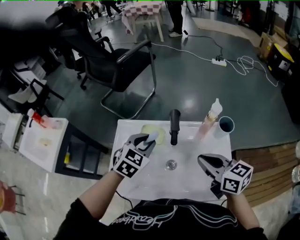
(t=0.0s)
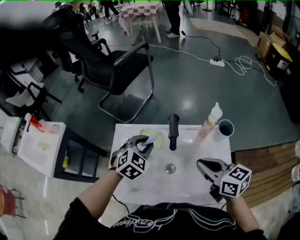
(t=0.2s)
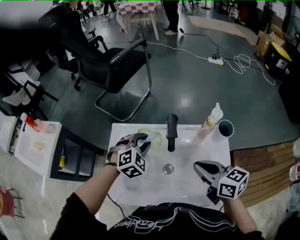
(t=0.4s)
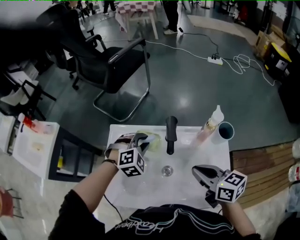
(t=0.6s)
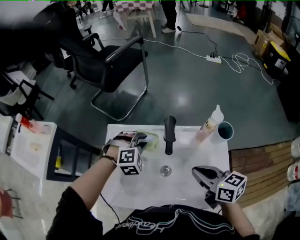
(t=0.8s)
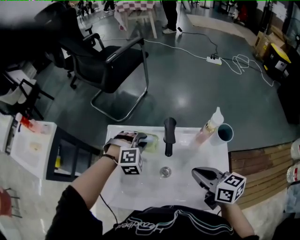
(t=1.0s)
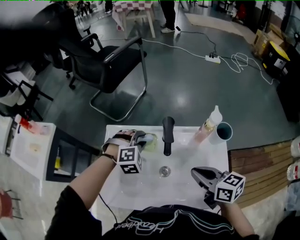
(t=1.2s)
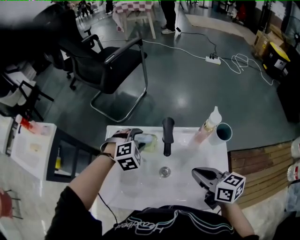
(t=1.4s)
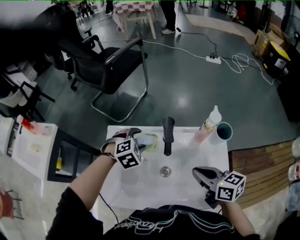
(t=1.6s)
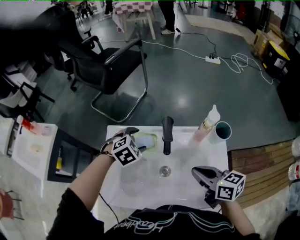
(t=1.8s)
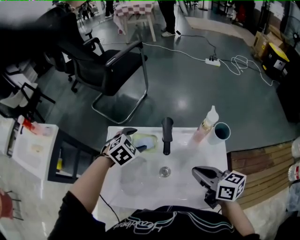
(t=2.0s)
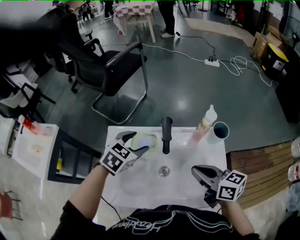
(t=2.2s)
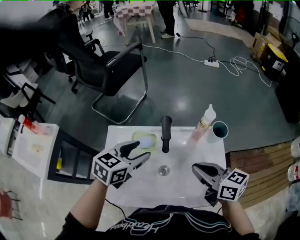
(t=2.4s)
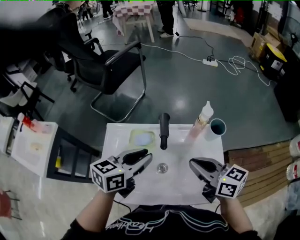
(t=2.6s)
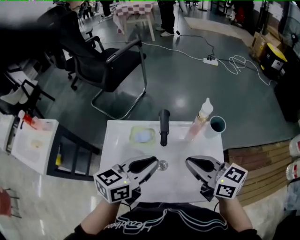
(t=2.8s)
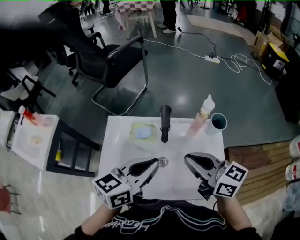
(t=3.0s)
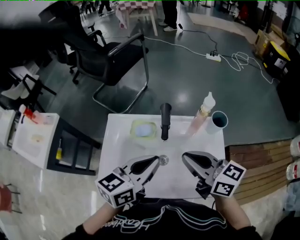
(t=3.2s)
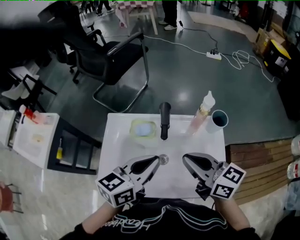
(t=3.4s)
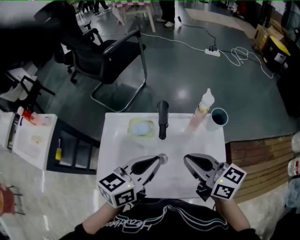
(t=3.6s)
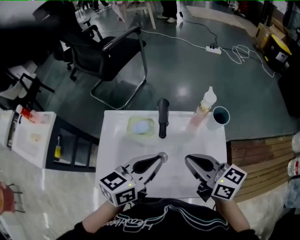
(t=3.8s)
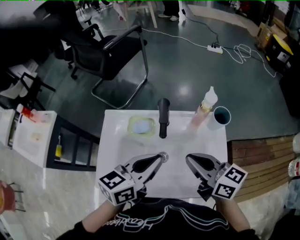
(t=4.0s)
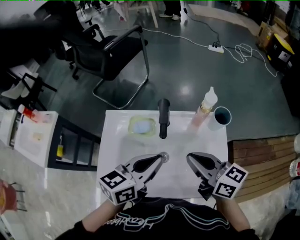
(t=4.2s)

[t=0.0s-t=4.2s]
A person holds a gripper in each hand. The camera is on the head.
t=0.0s to t=1.4s: The left gripper shifts about 10 cm downward and forward, and swivels approximately 40 degrees, while the right gripper goes some 5 cm downward.
t=1.4s to t=2.8s: The left gripper shifts some 20 cm backward and upward, tilts its fingers roughly 40 degrees upward, and closes. The right gripper moves upward, roughly 10 cm.
t=2.8s to t=4.2s: The grippers move only a little.

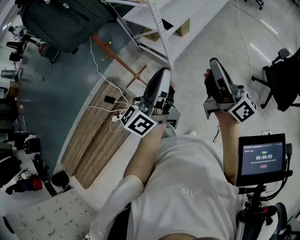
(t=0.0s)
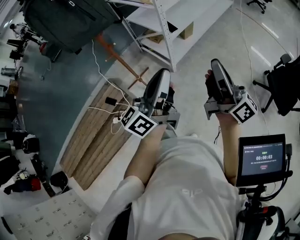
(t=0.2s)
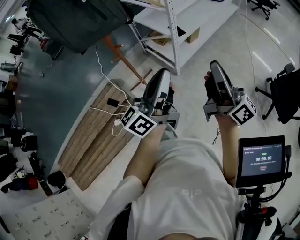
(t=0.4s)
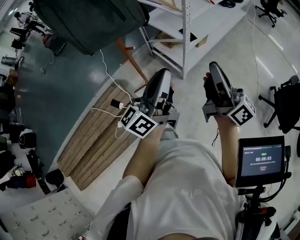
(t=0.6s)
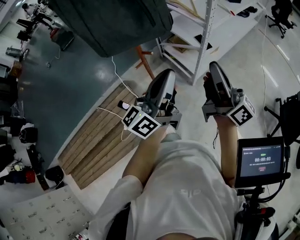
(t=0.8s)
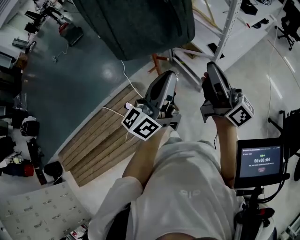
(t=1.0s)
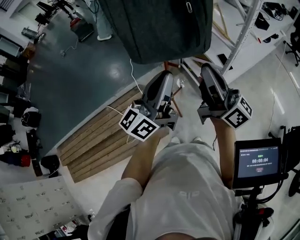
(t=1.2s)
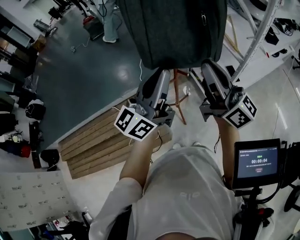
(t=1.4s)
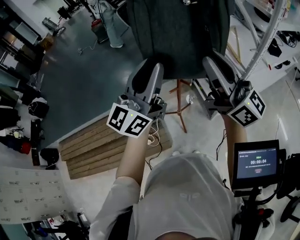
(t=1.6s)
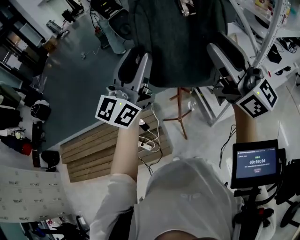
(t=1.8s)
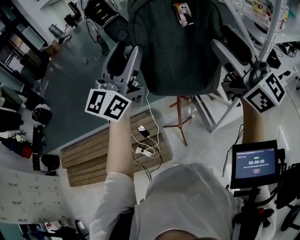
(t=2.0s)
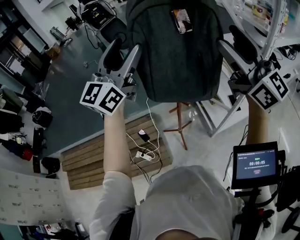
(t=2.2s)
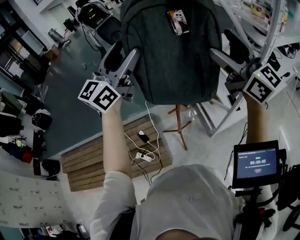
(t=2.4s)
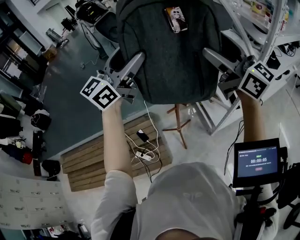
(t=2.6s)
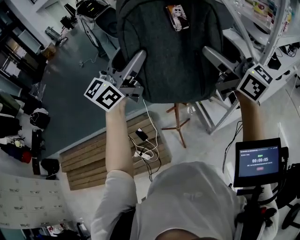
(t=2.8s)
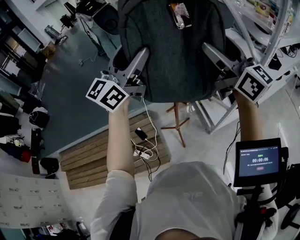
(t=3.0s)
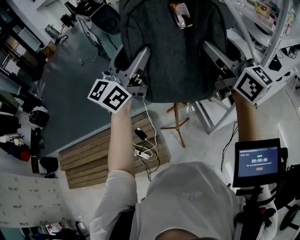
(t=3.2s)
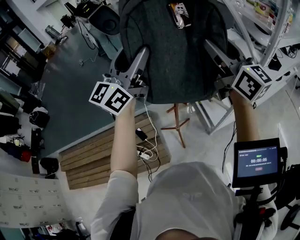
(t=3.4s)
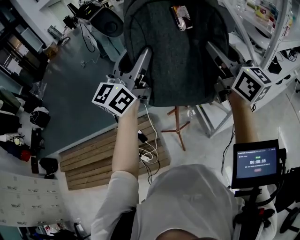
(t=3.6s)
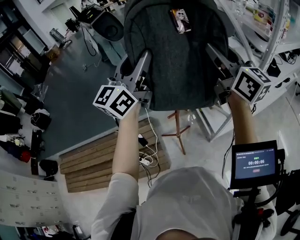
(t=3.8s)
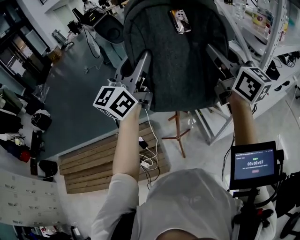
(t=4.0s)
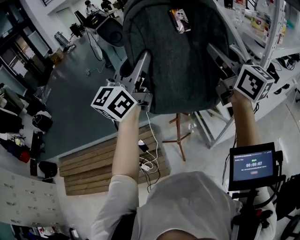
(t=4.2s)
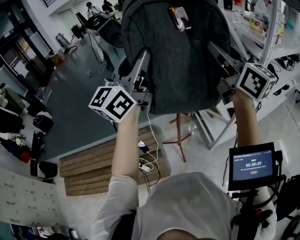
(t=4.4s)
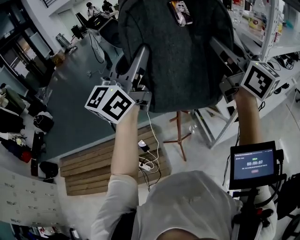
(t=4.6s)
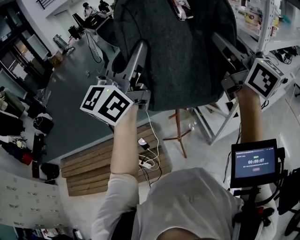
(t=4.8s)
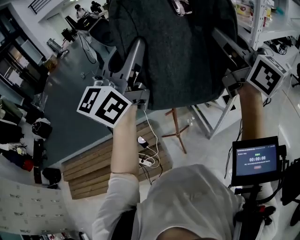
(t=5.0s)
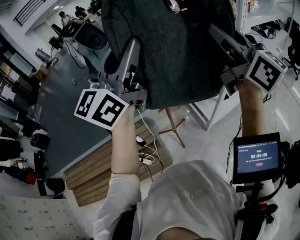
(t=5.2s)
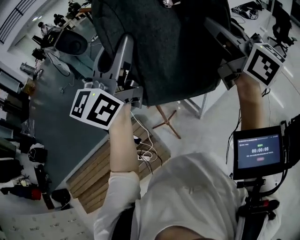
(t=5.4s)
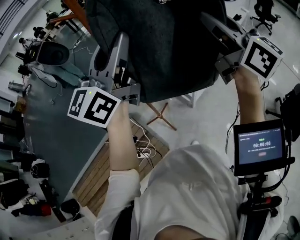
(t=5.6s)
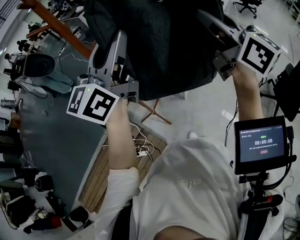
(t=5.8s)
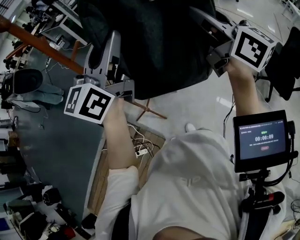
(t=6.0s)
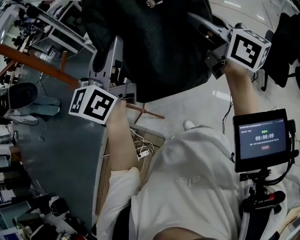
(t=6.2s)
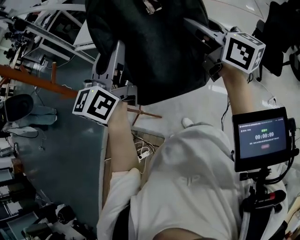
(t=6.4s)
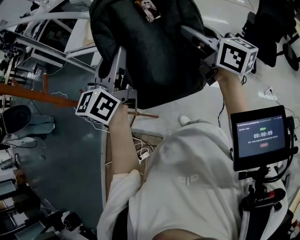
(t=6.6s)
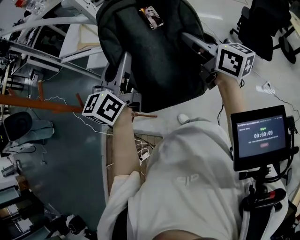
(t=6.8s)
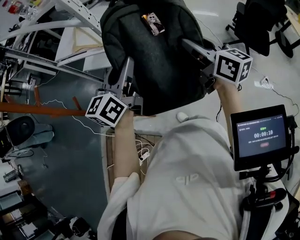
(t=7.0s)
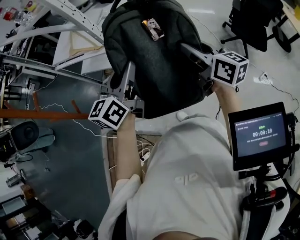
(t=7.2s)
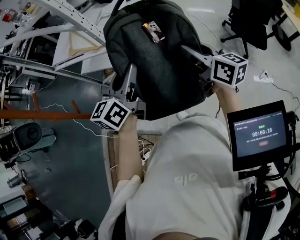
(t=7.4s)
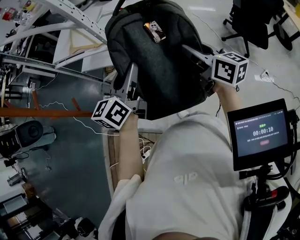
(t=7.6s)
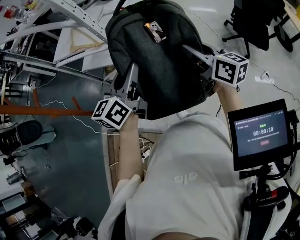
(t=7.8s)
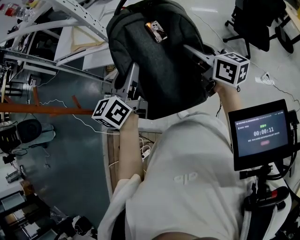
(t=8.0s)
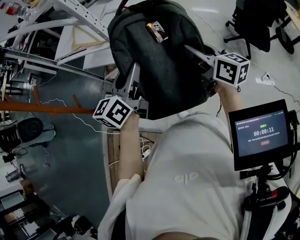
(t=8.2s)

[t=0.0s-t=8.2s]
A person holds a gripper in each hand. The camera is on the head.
t=0.0s to t=1.6s: The grippers both shift to the left, upward and forward by approximately 15 cm. The left gripper rolls clockwise, seen from behind, by some 40 degrees. The right gripper changes its angle by about 30 degrees.
t=1.6s to t=3.2s: The right gripper travels forward by about 5 cm, and opens, while the left gripper moves forward and upward, approximately 10 cm, and opens.
t=3.2s to t=5.0s: Both grippers move upward, approximately 5 cm. The right gripper closes up. Meanwhile the left gripper closes.
t=5.0s to t=6.6s: The left gripper shifts by approximately 40 cm, and changes its angle by approximately 50 degrees; the right gripper shifts by about 40 cm, and changes its angle by roughly 50 degrees.
t=6.6s to t=8.2s: The grippers both shift downward by about 10 cm.

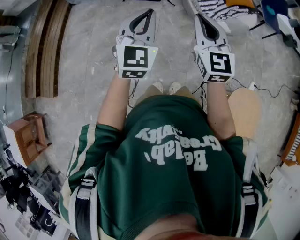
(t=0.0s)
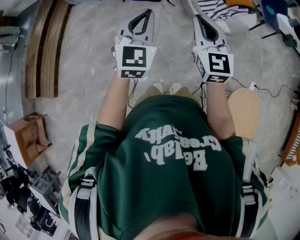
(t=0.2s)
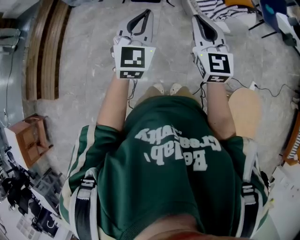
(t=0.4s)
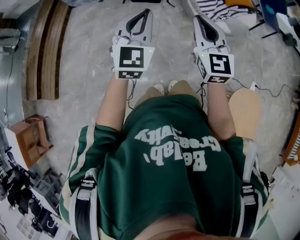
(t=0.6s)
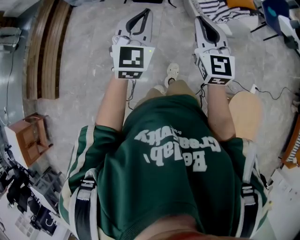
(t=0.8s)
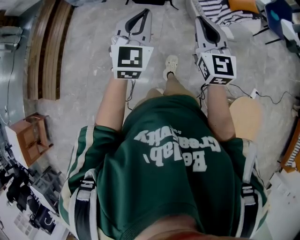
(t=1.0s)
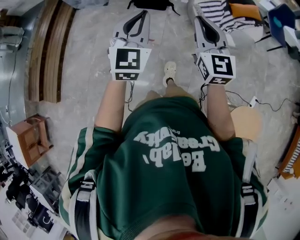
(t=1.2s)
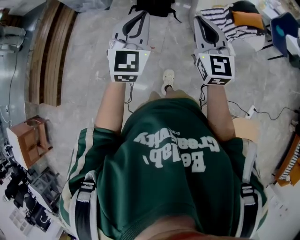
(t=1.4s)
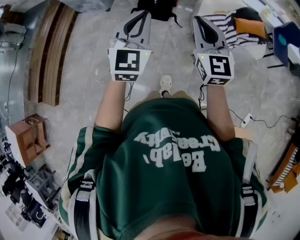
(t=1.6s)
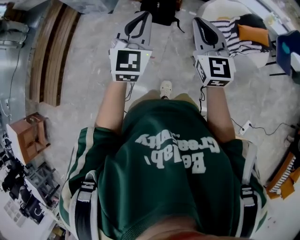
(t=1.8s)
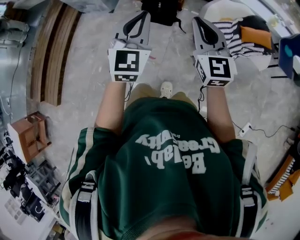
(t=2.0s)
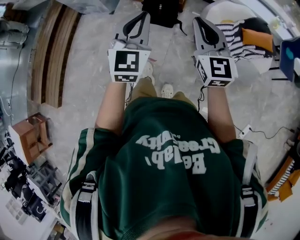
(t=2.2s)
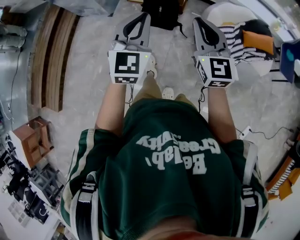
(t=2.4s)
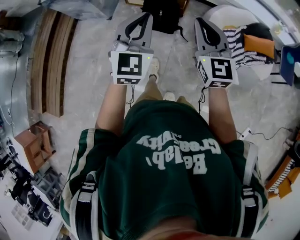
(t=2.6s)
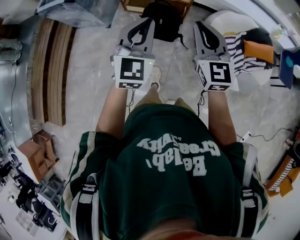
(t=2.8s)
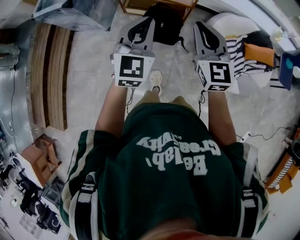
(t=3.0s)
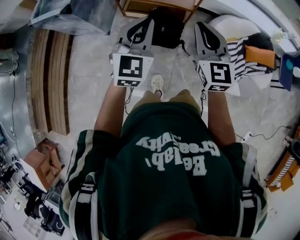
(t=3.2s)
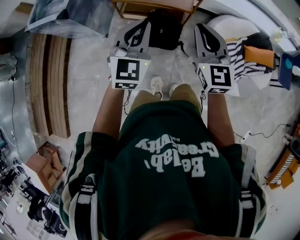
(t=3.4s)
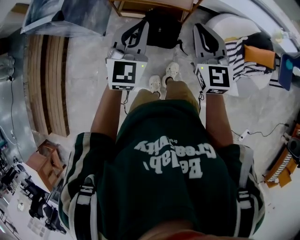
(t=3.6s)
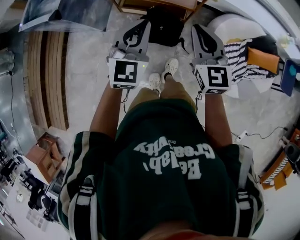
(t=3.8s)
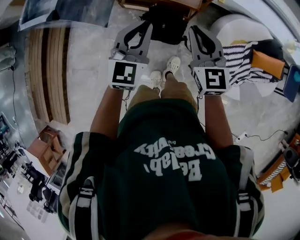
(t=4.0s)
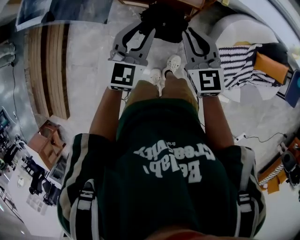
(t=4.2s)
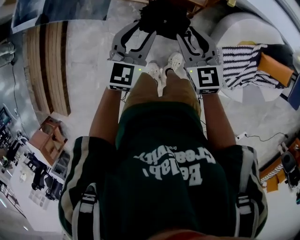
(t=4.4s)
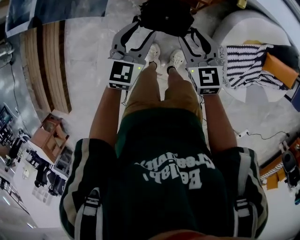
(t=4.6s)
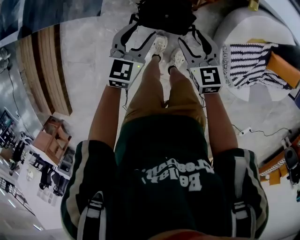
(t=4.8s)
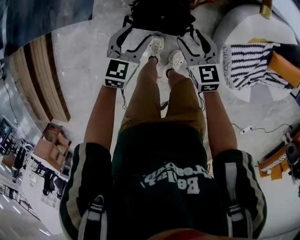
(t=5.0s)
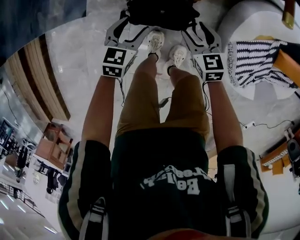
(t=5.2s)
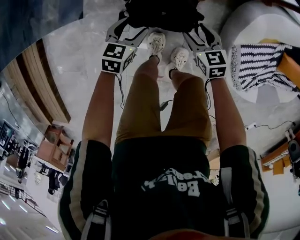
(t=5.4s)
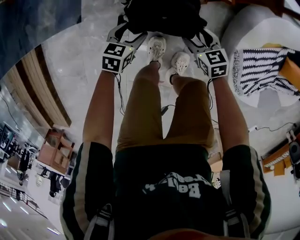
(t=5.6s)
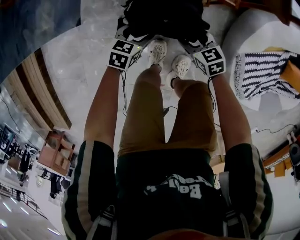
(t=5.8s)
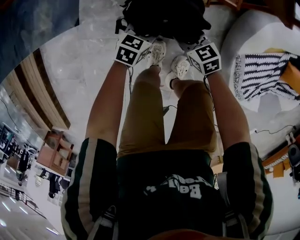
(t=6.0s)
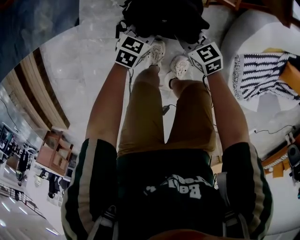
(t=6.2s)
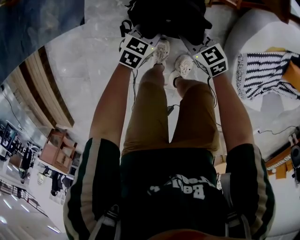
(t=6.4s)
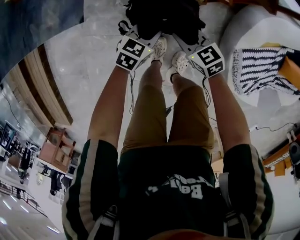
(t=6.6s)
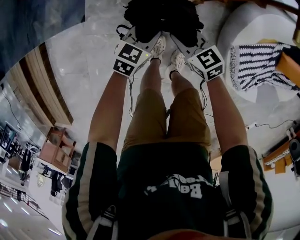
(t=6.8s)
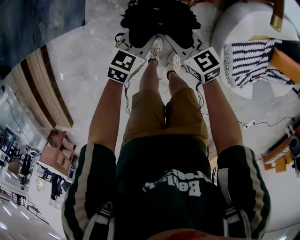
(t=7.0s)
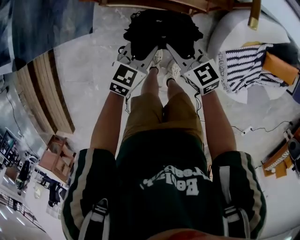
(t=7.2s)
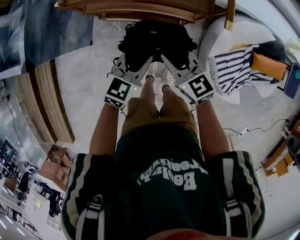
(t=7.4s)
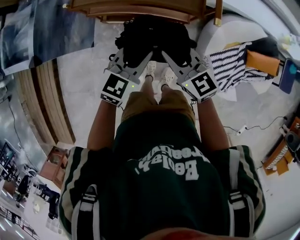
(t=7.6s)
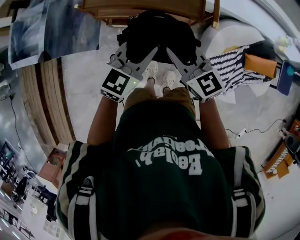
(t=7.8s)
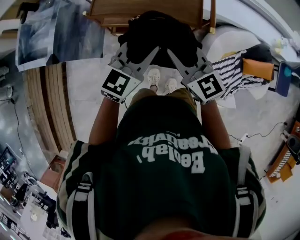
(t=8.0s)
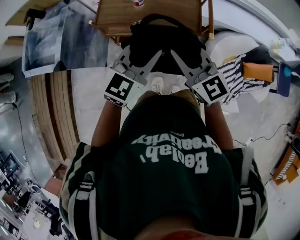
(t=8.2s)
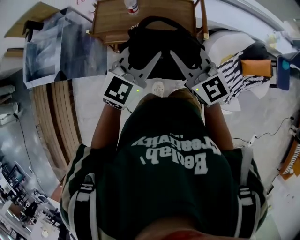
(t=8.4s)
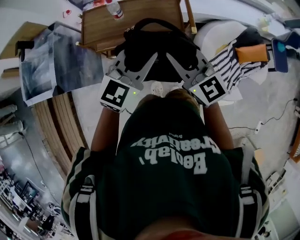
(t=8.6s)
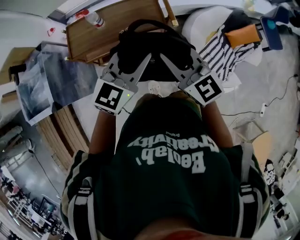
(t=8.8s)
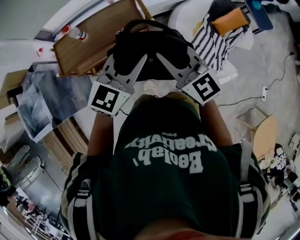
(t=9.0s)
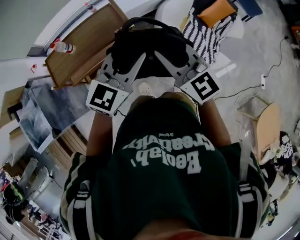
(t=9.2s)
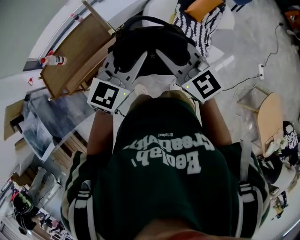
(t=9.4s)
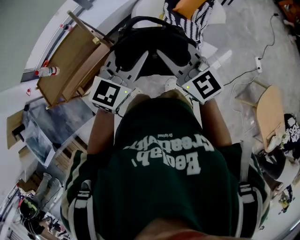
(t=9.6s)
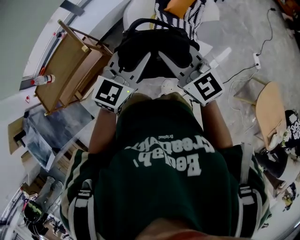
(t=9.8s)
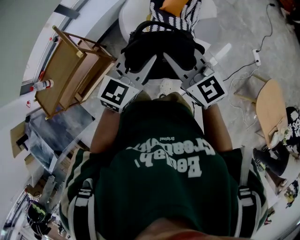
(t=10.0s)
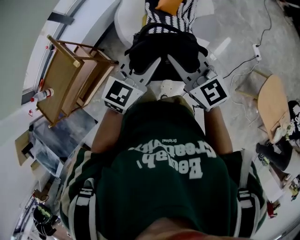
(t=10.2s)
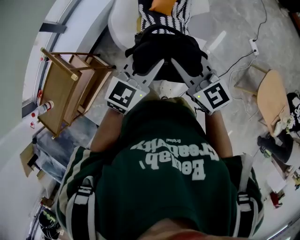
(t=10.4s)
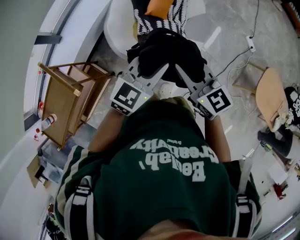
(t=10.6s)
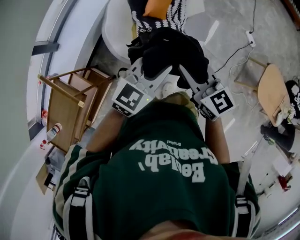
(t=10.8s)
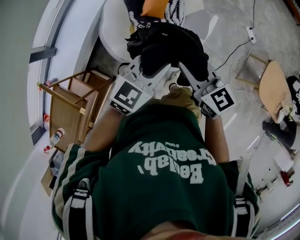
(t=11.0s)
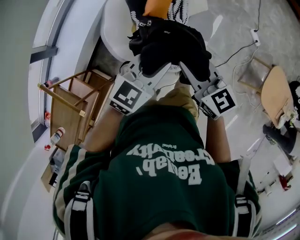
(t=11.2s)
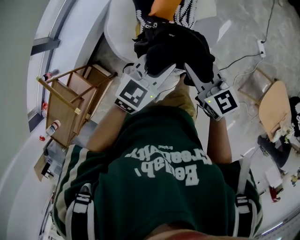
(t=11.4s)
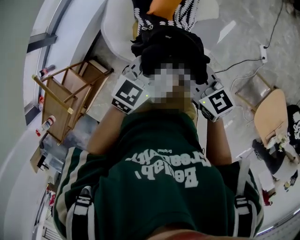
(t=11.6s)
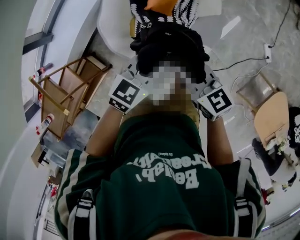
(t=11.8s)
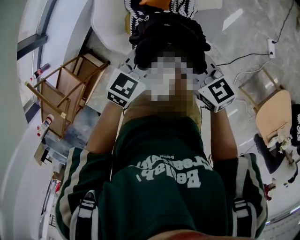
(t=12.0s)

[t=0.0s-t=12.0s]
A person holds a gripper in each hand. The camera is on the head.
t=0.0s to t=1.6s: Both grippers travel together forward, approximately 30 cm.
t=1.6s to t=3.0s: Both grippers are carried forward, about 50 cm.
t=3.0s to t=4.4s: The grippers both shift forward and downward by some 35 cm. The right gripper turns by approximately 20 degrees, and opens up. The left gripper opens its fingers.
t=4.4s to t=6.0s: Both grippers move downward, roughly 60 cm. The left gripper rotates about 40 degrees. The right gripper changes its angle by roughly 30 degrees, and opens and closes again.
t=6.0s to t=7.6s: Both grippers move upward, roughly 60 cm. The left gripper changes its angle by approximately 30 degrees, and closes its fingers, while the right gripper swivels about 30 degrees, and closes up.
t=7.6s to t=9.0s: Both grippers move upward, roughly 20 cm. The right gripper rotates roughly 30 degrees; the left gripper rotates roughly 30 degrees.
t=9.0s to t=10.4s: The two grippers travel together, about 50 cm. The left gripper swivels approximately 30 degrees, while the right gripper rotates approximately 40 degrees.
t=10.4s to t=12.0s: The grippers both shift forward and downward by some 40 cm. The left gripper turns by approximately 20 degrees. Meanwhile the right gripper rotates about 20 degrees.
